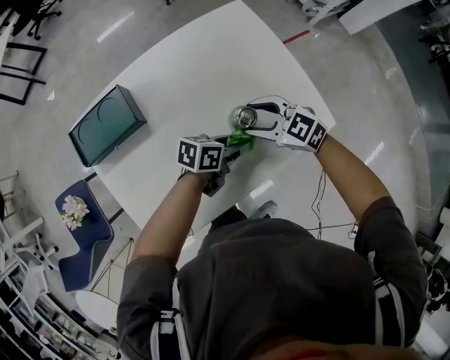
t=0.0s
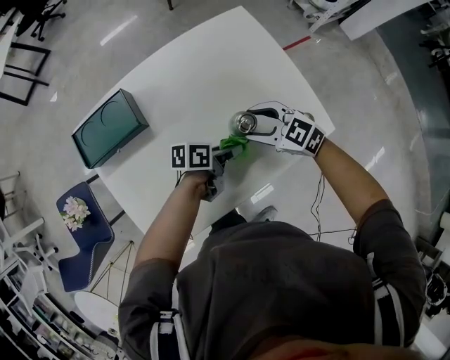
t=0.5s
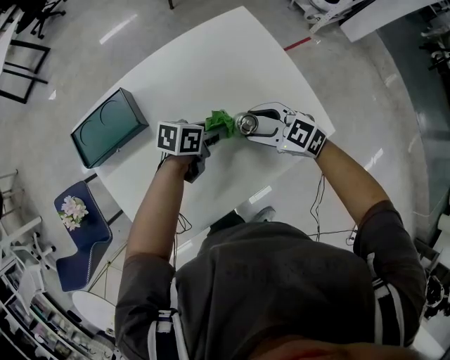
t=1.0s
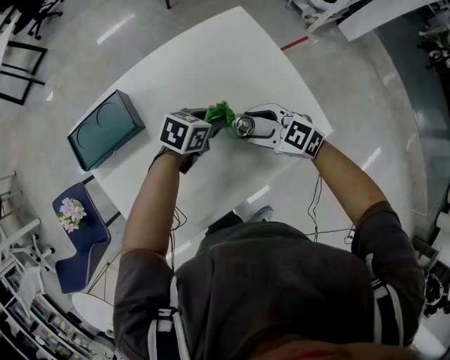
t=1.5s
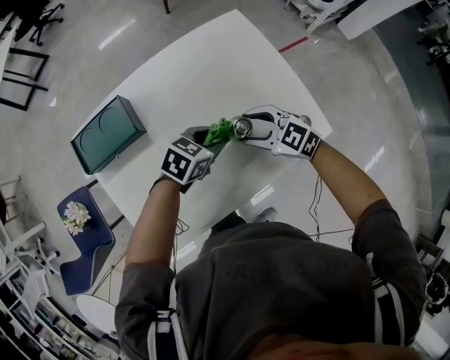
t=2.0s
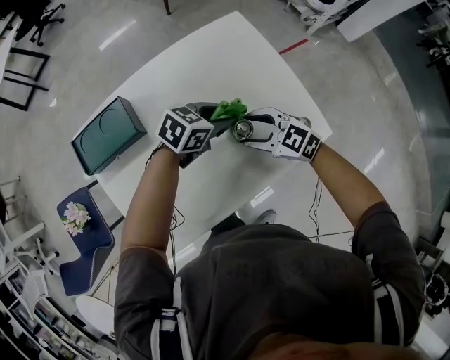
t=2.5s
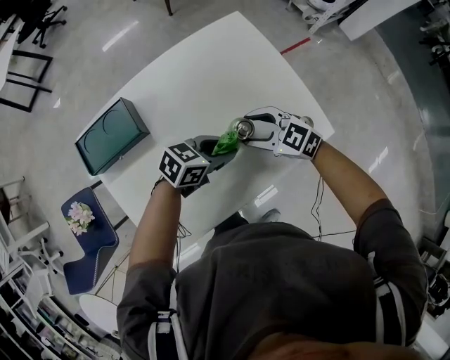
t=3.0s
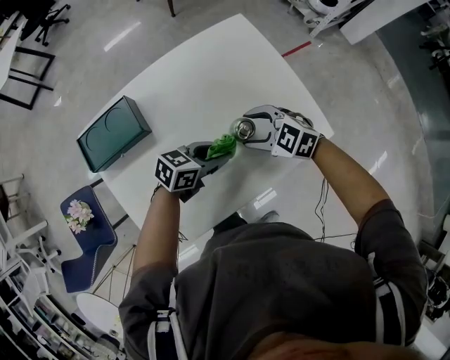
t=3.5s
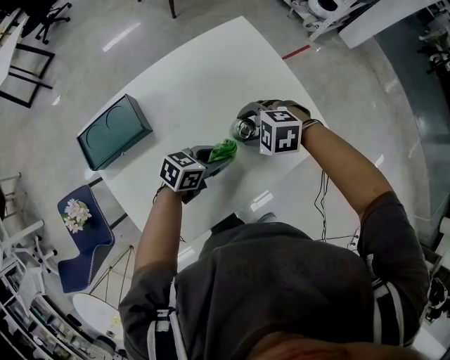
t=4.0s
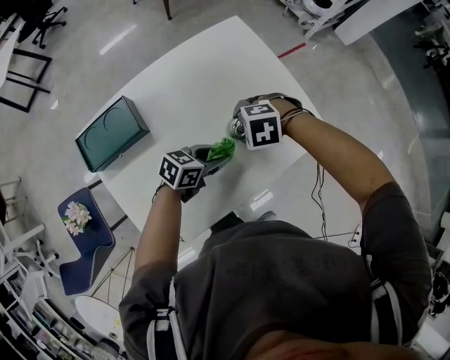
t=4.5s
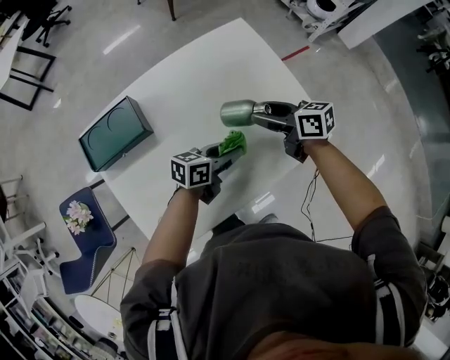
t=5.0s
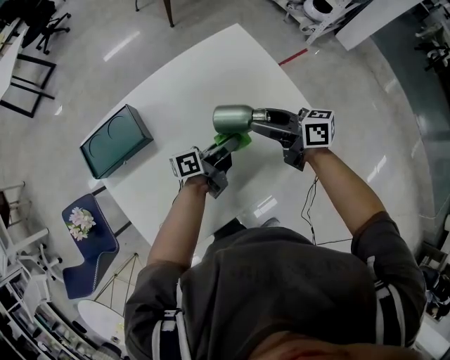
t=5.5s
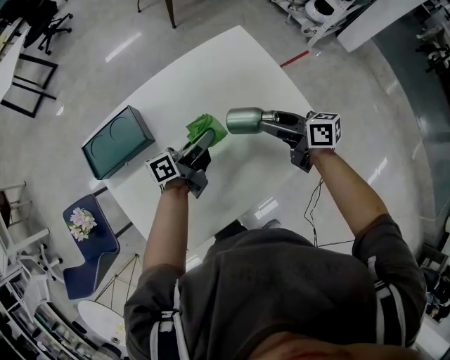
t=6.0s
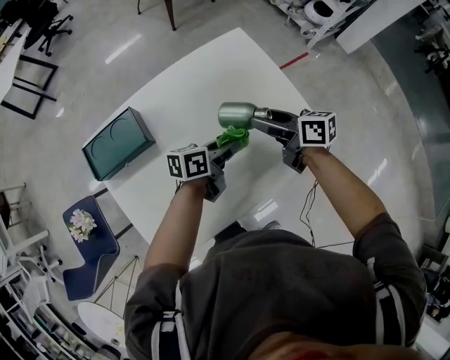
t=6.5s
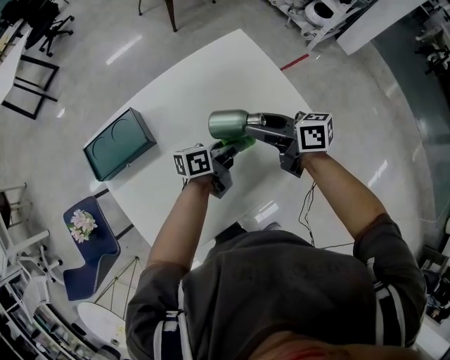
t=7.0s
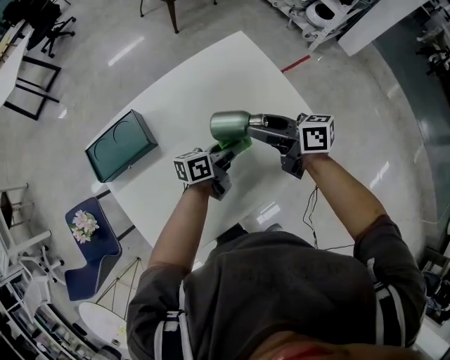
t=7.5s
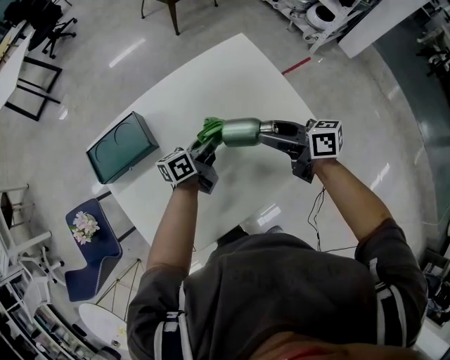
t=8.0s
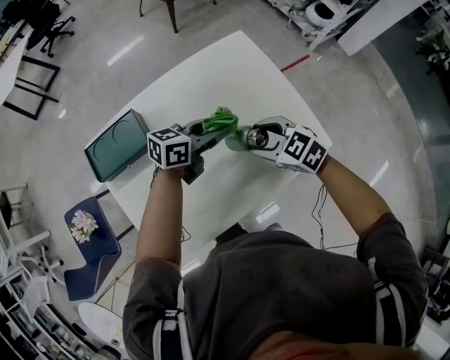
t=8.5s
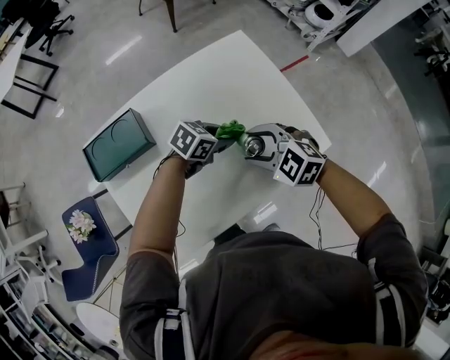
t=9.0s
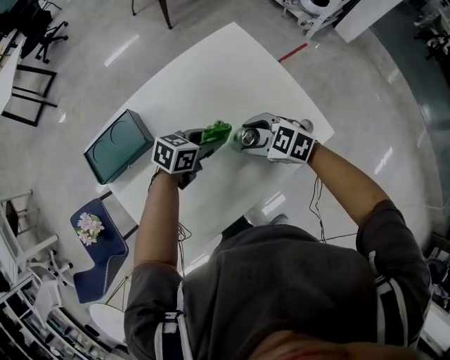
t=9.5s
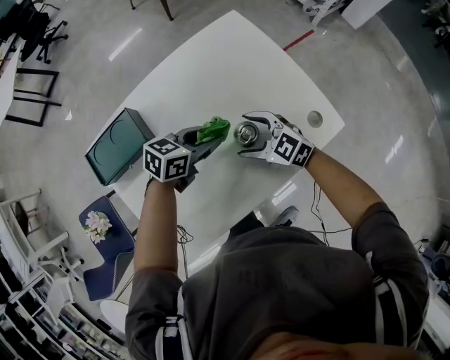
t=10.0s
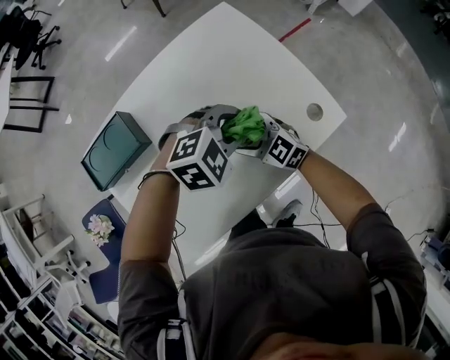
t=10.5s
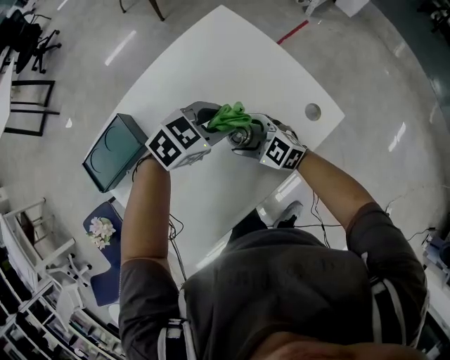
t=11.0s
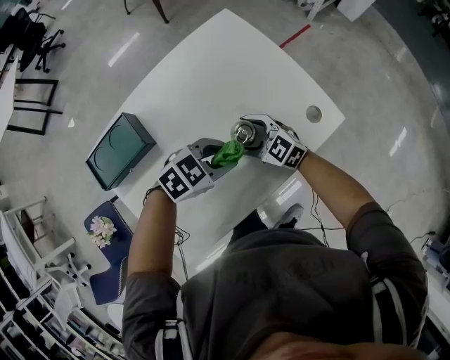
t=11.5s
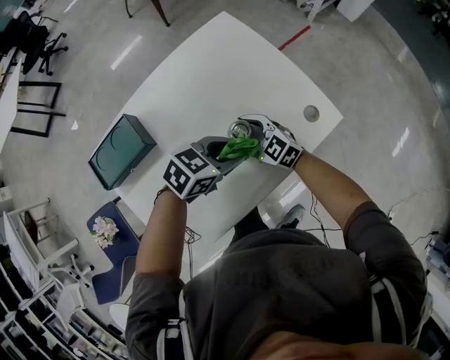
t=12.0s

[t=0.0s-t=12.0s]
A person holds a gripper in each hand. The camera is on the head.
t=0.0s to t=2.0s: The left gripper ends up approximately 5 cm from where it was, and changes its angle by about 30 degrees.
t=2.0s to t=4.0s: The left gripper changes place by approximately 5 cm. Meanwhile the right gripper rotates approximately 40 degrees.
t=4.0s to t=6.0s: The right gripper changes place by some 10 cm, and points its fingers approximately 50 degrees further upward. Meanwhile the left gripper moves roughly 10 cm, and points its fingers approximately 30 degrees further upward.
t=6.0s to t=8.0s: The left gripper moves about 10 cm to the right and comes back.
t=8.0s to t=10.0s: The left gripper reaches some 5 cm upward, then returns, and rotates approximately 50 degrees. The right gripper heads downward, covering some 10 cm, rolls counterclockwise, seen from behind, by some 50 degrees, and opens.
t=10.0s to t=12.0s: The left gripper moves roughly 10 cm, and changes its angle by approximately 20 degrees.

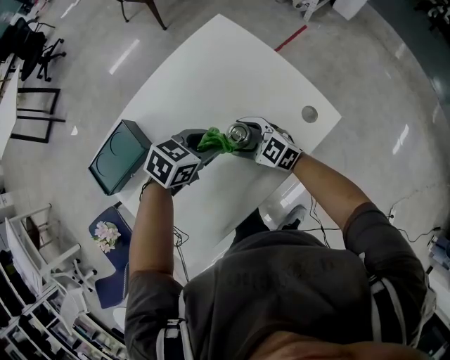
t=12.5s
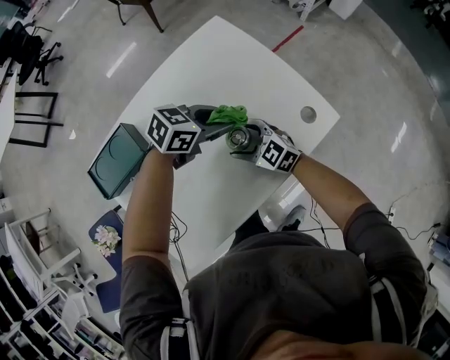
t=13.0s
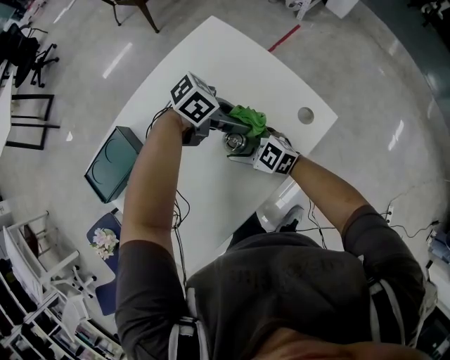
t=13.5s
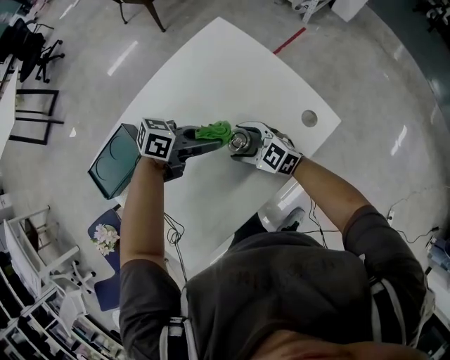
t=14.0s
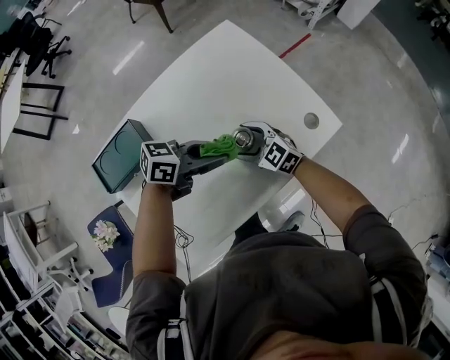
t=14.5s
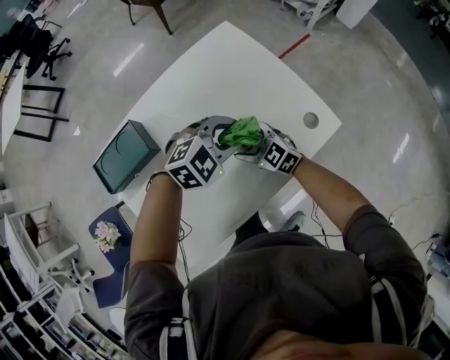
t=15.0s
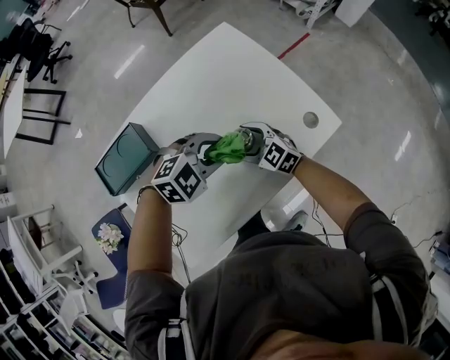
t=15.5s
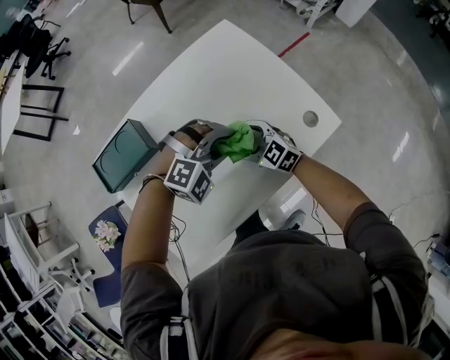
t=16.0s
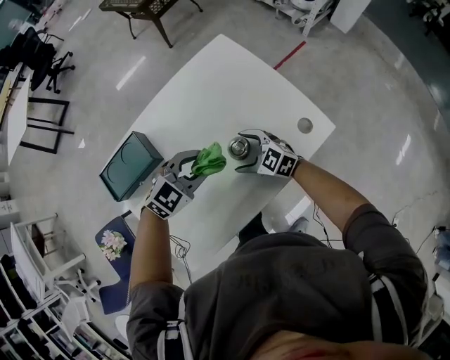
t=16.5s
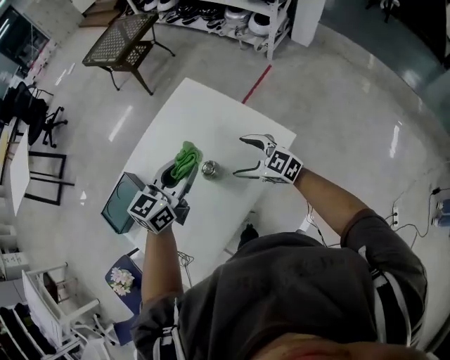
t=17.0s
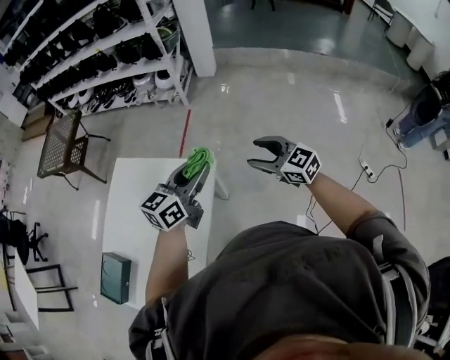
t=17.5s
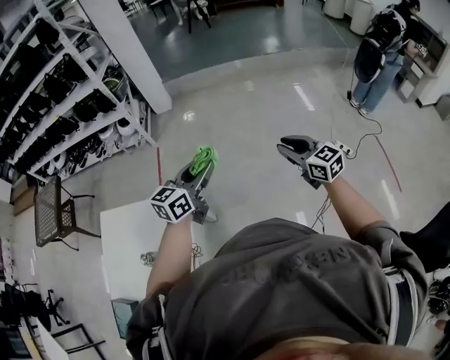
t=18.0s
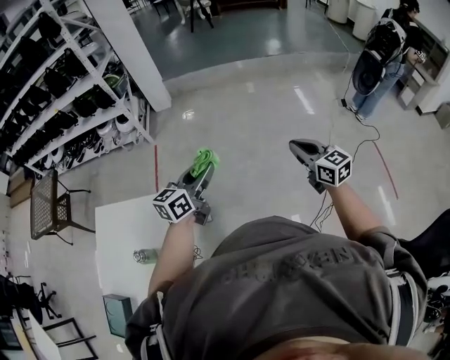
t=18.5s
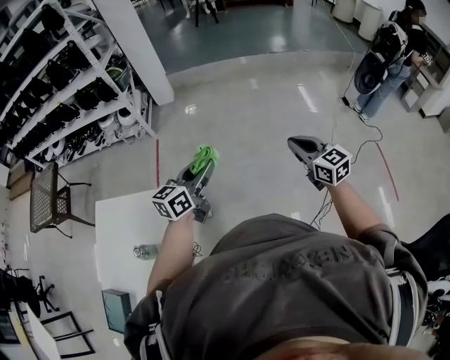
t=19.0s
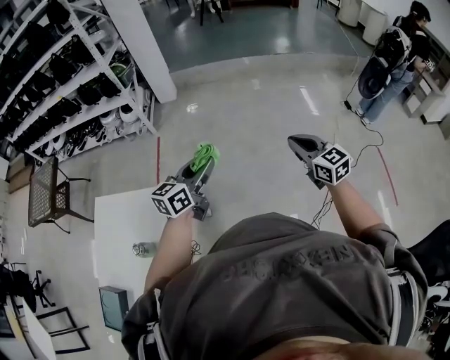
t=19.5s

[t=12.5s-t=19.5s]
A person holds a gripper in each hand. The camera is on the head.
t=12.5s to t=14.5s: The left gripper changes its angle by some 30 degrees.
t=14.5s to t=16.0s: The left gripper rolls clockwise, seen from behind, by about 80 degrees.
t=16.0s to t=17.5s: The left gripper changes place by approximately 35 cm, and tips its fingers upward by about 40 degrees; the right gripper shifts by roughly 50 cm, and rotates roughly 50 degrees.
t=17.5s to t=19.5s: The left gripper shifts by approximately 20 cm. The right gripper moves approximately 30 cm, turns by about 40 degrees, and closes its fingers.

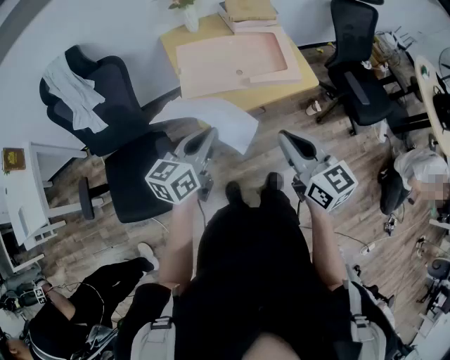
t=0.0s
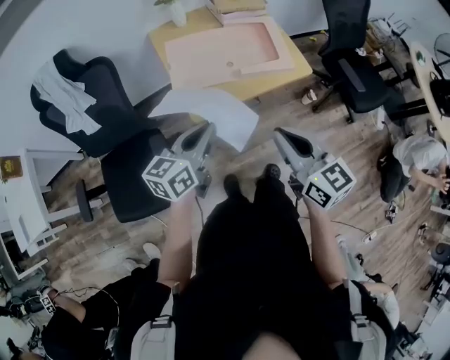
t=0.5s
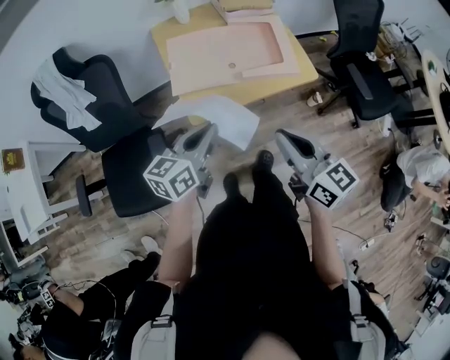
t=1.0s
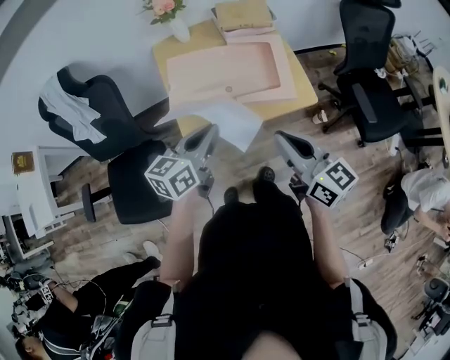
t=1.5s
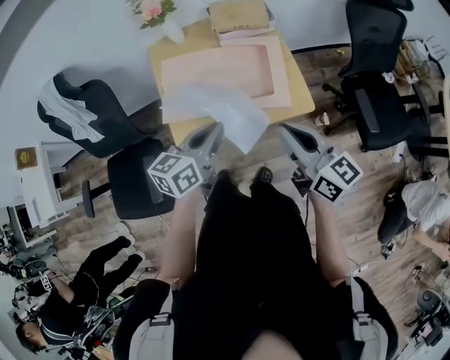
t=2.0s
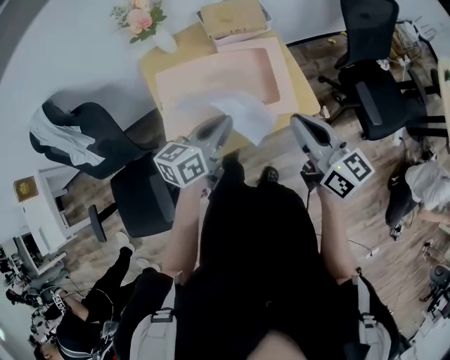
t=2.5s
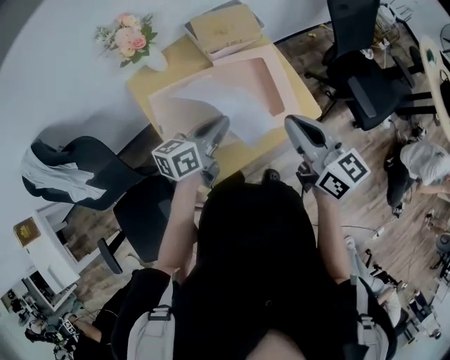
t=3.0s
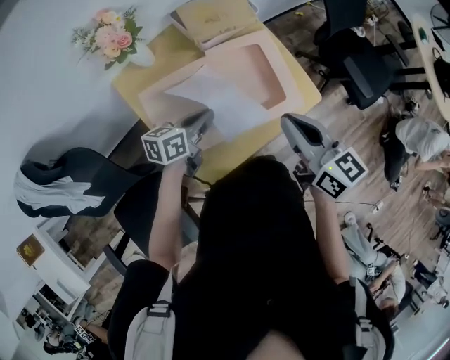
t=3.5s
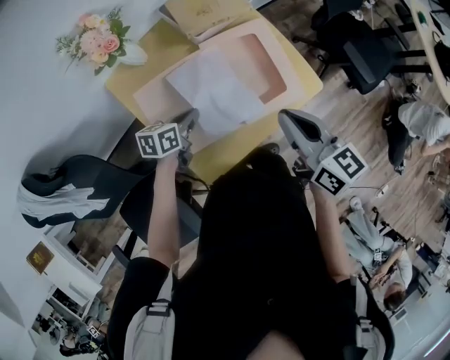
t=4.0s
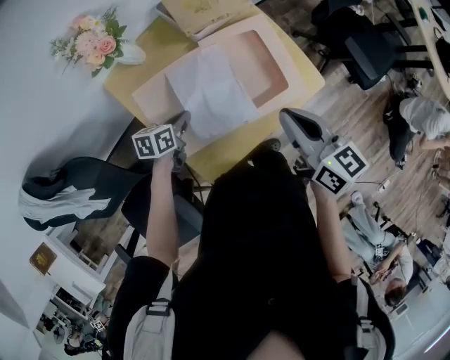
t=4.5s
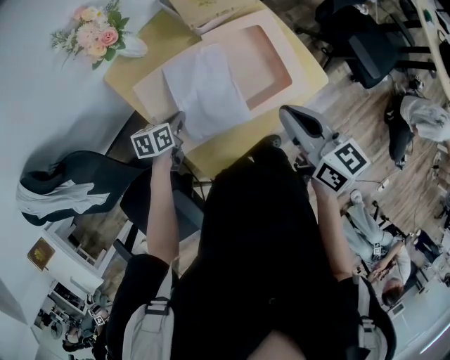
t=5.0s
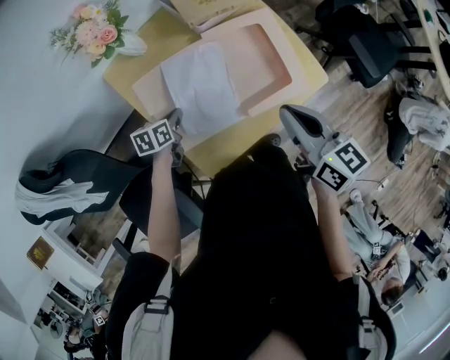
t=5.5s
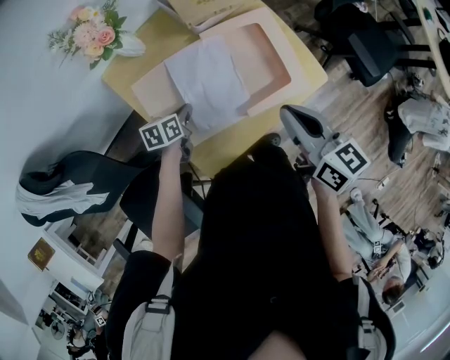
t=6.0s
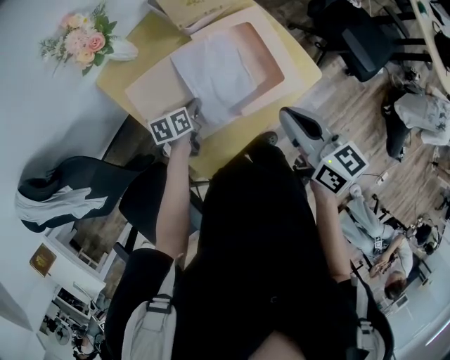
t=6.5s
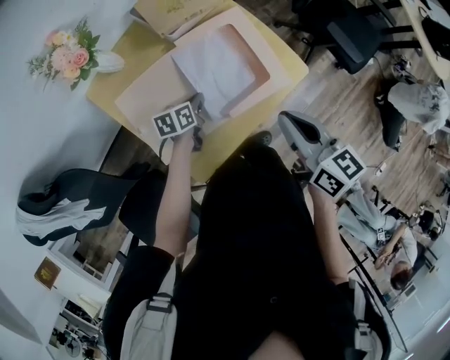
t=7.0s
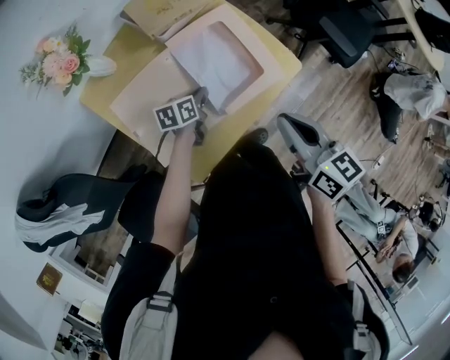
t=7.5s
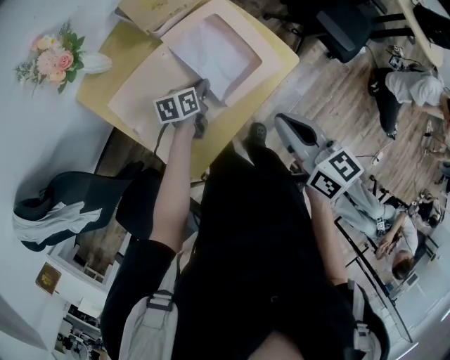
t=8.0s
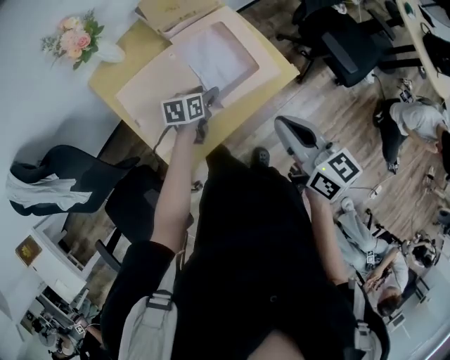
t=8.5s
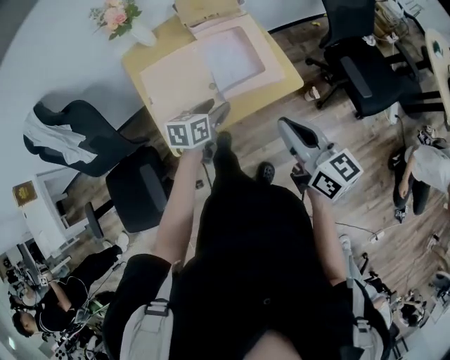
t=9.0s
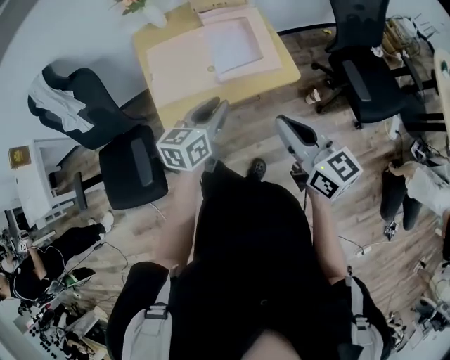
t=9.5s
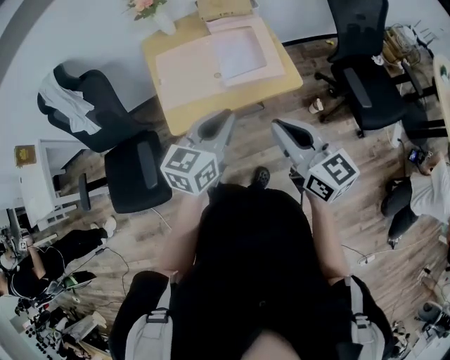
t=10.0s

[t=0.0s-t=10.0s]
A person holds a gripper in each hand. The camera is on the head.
t=0.0s to t=2.0s: The left gripper is displaced to the right and forward by about 25 cm, while the right gripper travels forward and to the right by some 25 cm.
t=2.0s to t=4.0s: The right gripper moves roughly 20 cm, and turns by some 30 degrees; the left gripper moves some 35 cm, and changes its angle by about 40 degrees.
t=4.0s to t=6.0s: The left gripper travels downward by roughly 5 cm.
t=6.0s to t=8.0s: The left gripper shifts approximately 20 cm to the right and forward; the right gripper travels to the right by some 5 cm.
t=8.0s to t=10.0s: The right gripper shifts by about 20 cm, and swivels about 40 degrees. Meanwhile the left gripper ends up roughly 40 cm from where it was, turns by approximately 50 degrees, and opens and closes again.
